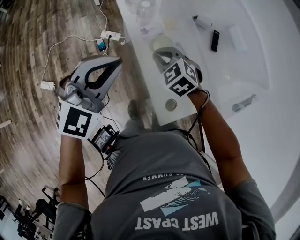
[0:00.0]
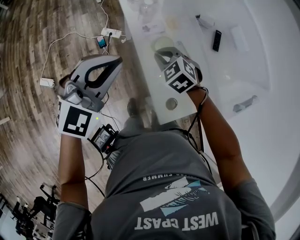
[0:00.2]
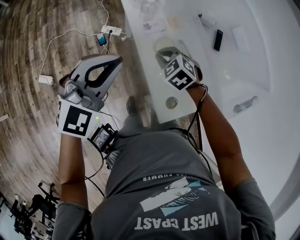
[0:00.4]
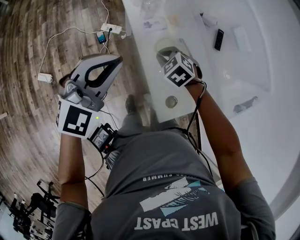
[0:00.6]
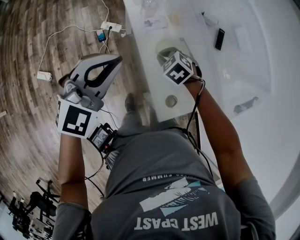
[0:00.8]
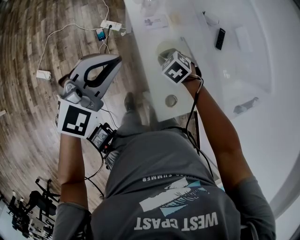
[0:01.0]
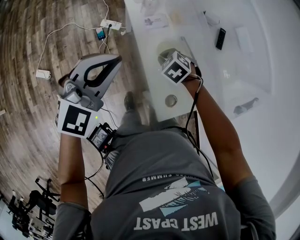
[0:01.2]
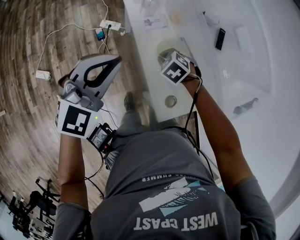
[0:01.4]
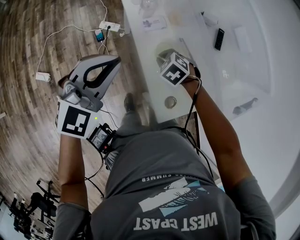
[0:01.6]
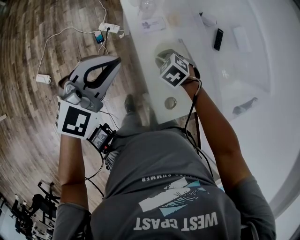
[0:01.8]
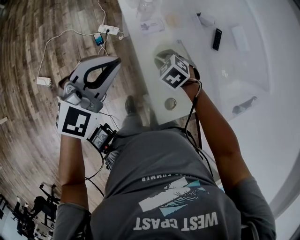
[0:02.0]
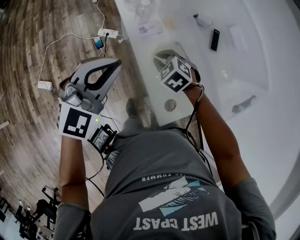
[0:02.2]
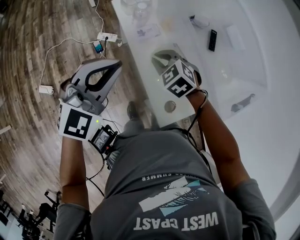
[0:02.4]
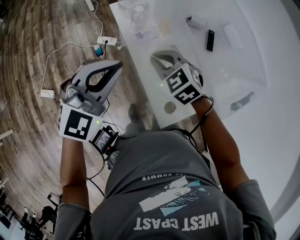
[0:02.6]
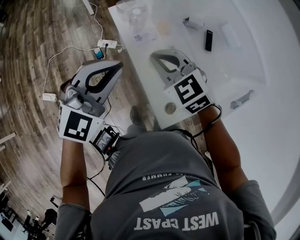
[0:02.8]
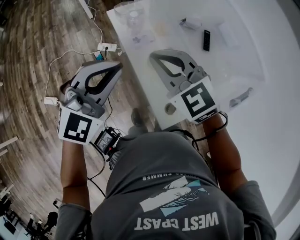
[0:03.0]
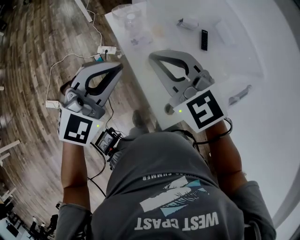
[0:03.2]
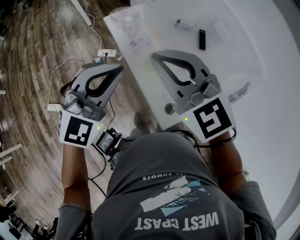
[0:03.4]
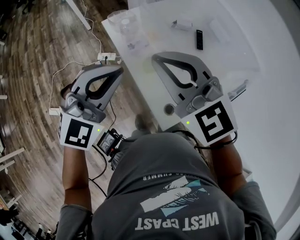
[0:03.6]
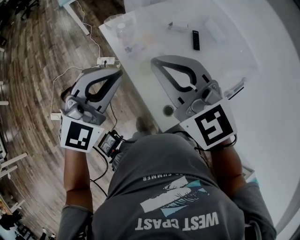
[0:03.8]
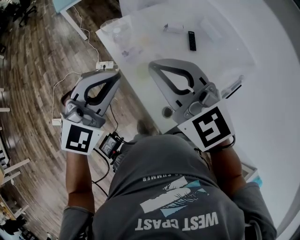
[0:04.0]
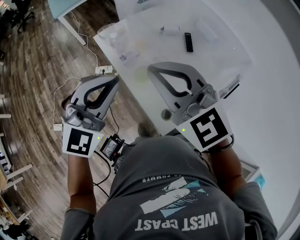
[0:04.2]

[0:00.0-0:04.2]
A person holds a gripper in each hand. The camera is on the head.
0.0 to 1.4 s: The right gripper shifts roughly 10 cm downward, and rotates roughly 20 degrees.
1.4 to 2.8 s: The right gripper moves upward, some 25 cm, and tilts its fingers about 40 degrees upward, while the left gripper goes approximately 5 cm upward.
2.8 to 4.2 s: The left gripper heads upward and to the right, covering about 10 cm, while the right gripper moves upward and backward, about 20 cm, and swivels about 20 degrees.

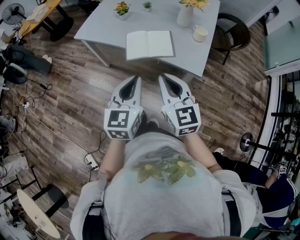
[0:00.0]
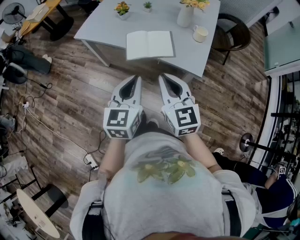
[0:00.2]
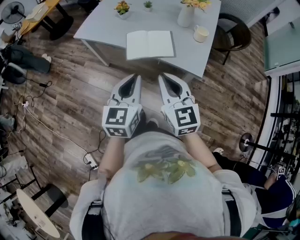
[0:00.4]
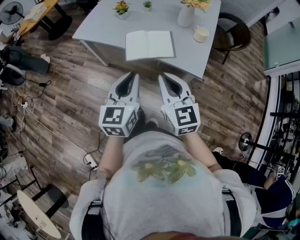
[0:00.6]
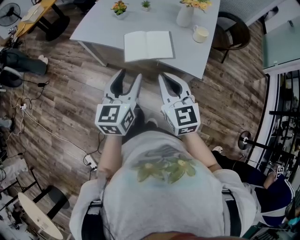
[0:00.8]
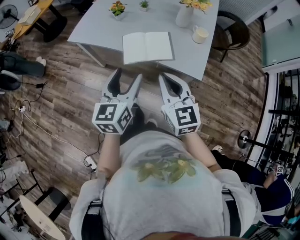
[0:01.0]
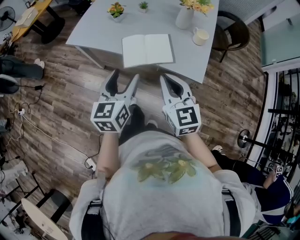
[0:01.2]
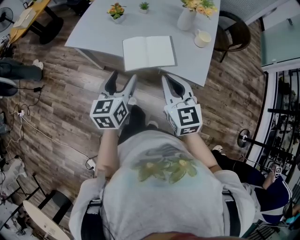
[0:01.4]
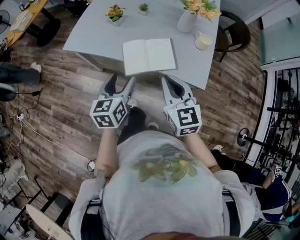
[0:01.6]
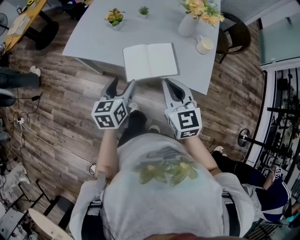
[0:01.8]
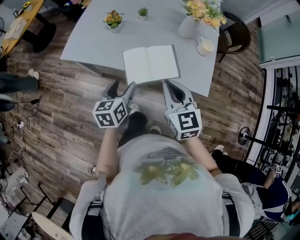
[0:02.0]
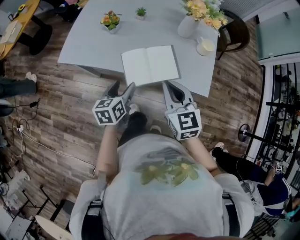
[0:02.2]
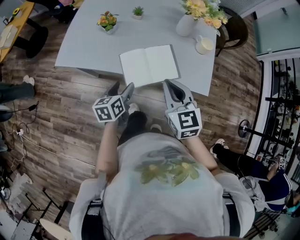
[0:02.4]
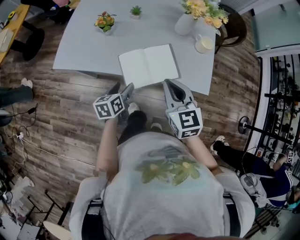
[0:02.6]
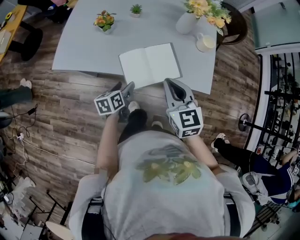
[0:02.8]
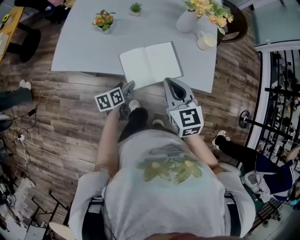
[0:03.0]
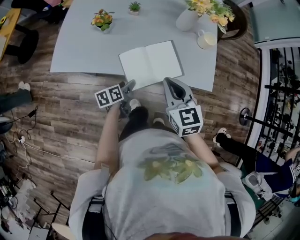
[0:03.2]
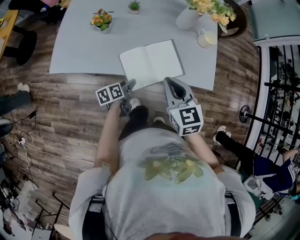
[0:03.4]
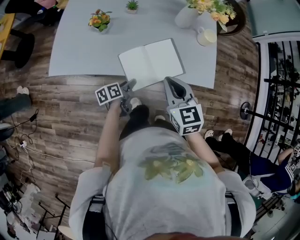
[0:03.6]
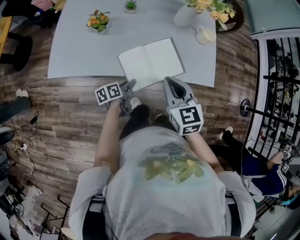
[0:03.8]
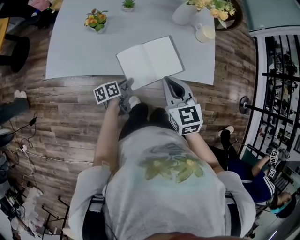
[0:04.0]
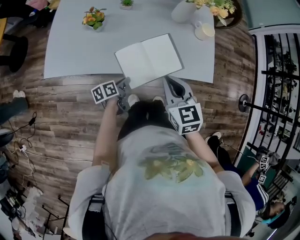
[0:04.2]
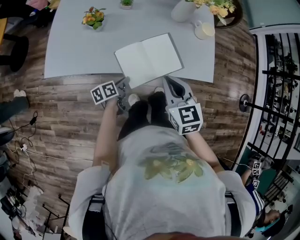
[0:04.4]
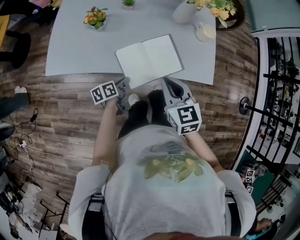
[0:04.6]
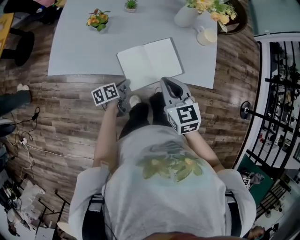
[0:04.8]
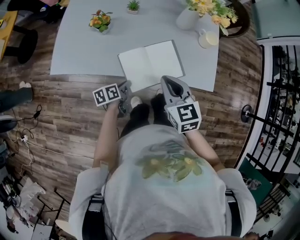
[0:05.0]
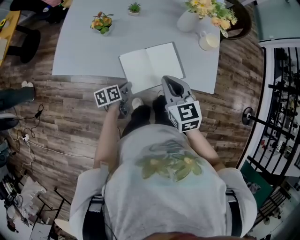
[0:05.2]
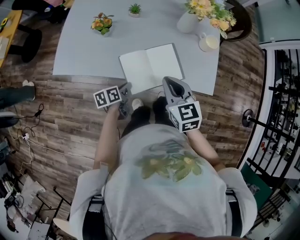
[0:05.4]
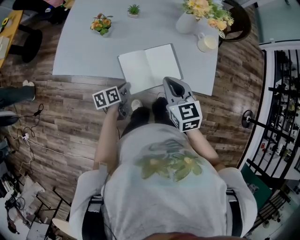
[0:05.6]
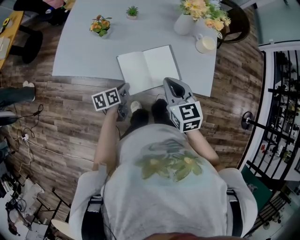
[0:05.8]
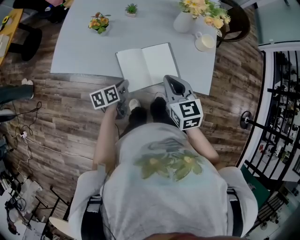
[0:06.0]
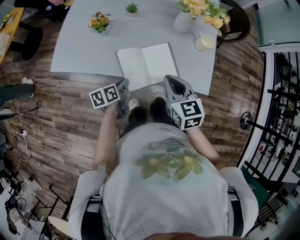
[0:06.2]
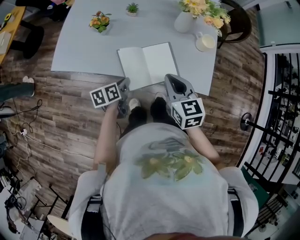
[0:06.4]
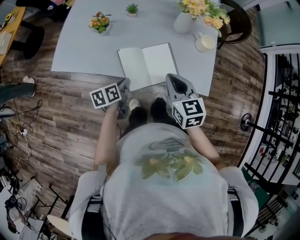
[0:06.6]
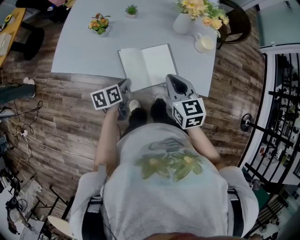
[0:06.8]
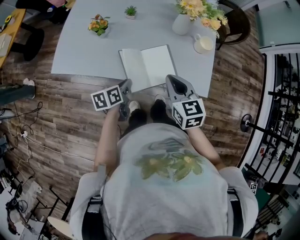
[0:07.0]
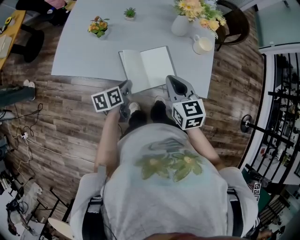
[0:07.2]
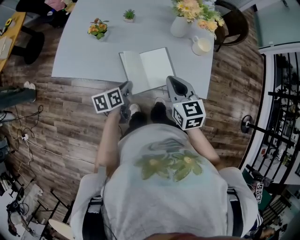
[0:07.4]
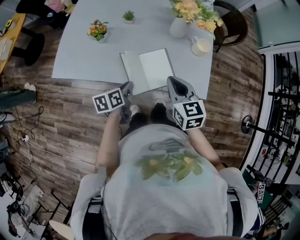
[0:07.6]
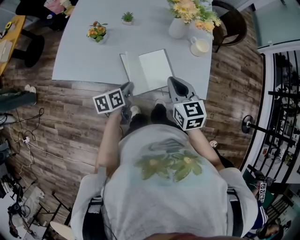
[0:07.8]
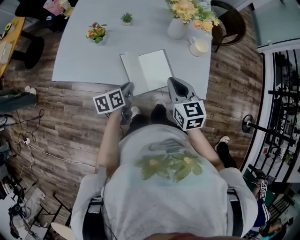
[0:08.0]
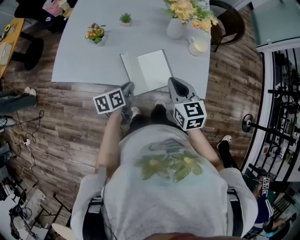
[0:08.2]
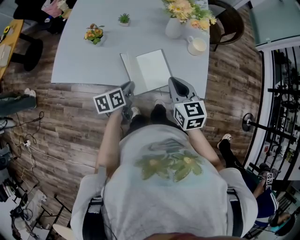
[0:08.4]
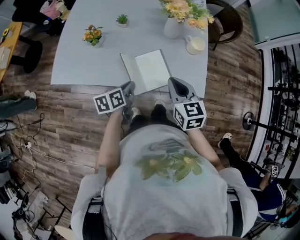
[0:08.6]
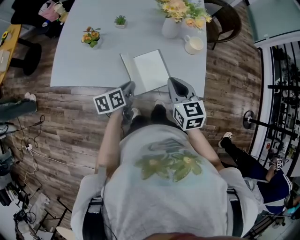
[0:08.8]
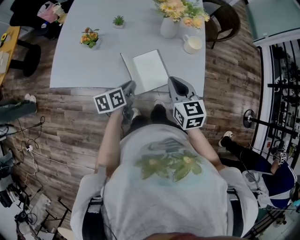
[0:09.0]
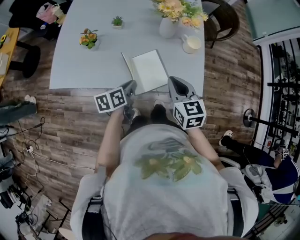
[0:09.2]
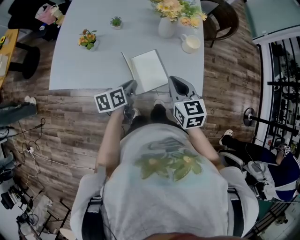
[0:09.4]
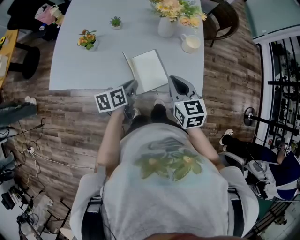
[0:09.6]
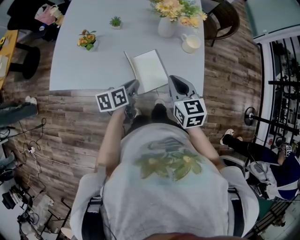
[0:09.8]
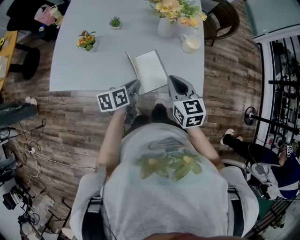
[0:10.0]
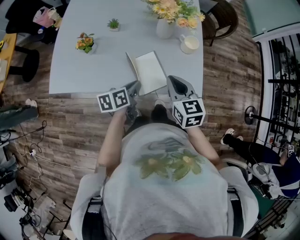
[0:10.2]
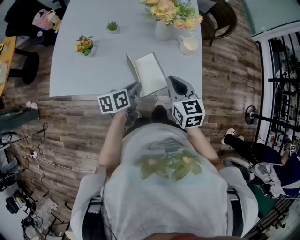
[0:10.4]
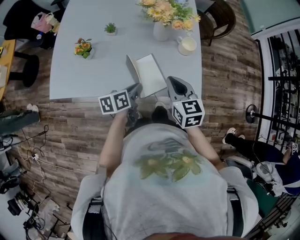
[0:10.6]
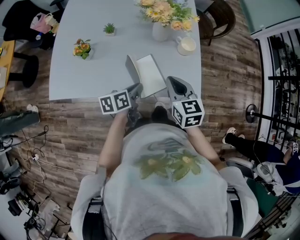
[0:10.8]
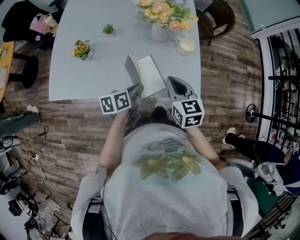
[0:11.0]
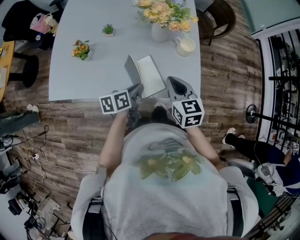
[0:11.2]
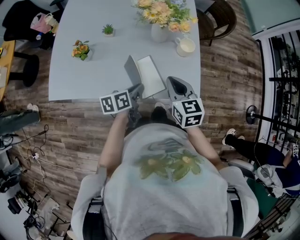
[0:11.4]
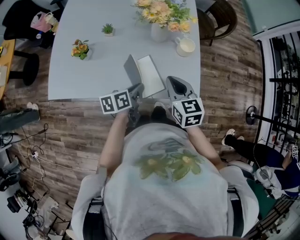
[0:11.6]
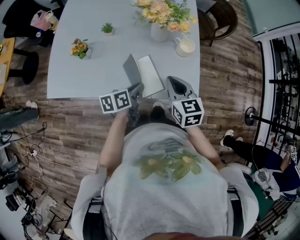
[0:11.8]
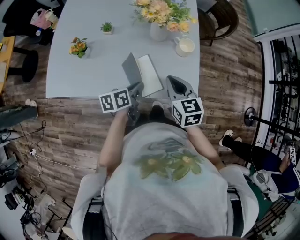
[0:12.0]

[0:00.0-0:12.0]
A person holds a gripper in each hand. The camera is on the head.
0.0 to 1.6 s: The left gripper heads forward, downward and to the left, covering some 20 cm, and opens. Meanwhile the right gripper shifts some 10 cm forward.
1.6 to 3.0 s: The left gripper is displaced downward and forward by some 20 cm, and rotates some 40 degrees. Meanwhile the right gripper moves forward, about 10 cm.
3.0 to 4.4 s: The left gripper ends up approximately 5 cm from where it was, and closes.
4.4 to 6.0 s: The right gripper shifts by approximately 5 cm. Meanwhile the left gripper heads upward, covering some 5 cm.
6.0 to 7.6 s: The left gripper changes place by about 5 cm.
7.6 to 9.0 s: The grippers stay close to where they were, moving slightly.
9.0 to 10.4 s: There are only small adjustments of the grippers.
10.4 to 12.0 s: The grippers stay close to where they were, moving slightly.

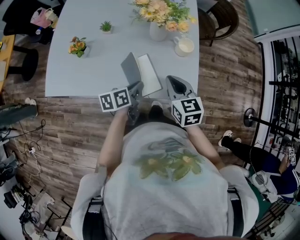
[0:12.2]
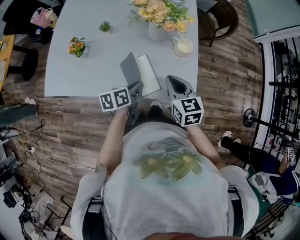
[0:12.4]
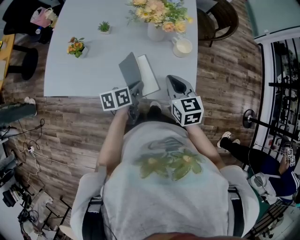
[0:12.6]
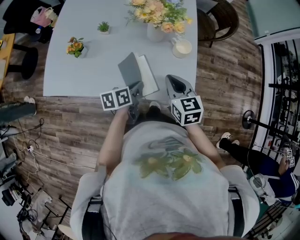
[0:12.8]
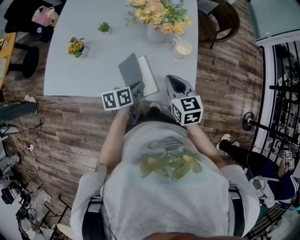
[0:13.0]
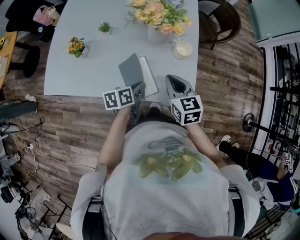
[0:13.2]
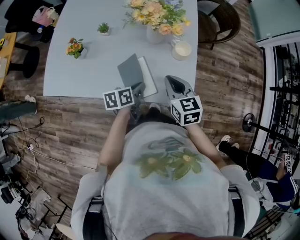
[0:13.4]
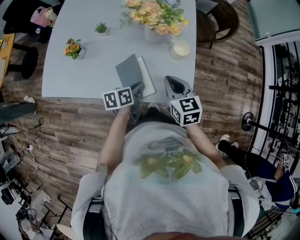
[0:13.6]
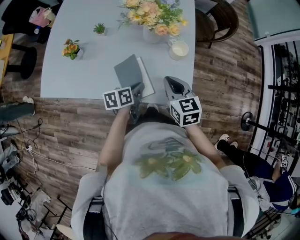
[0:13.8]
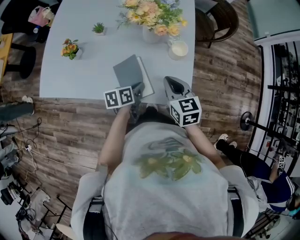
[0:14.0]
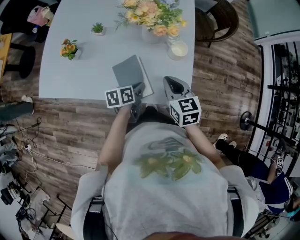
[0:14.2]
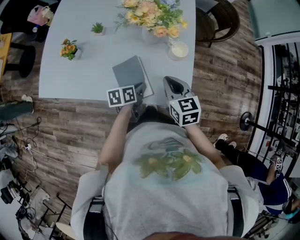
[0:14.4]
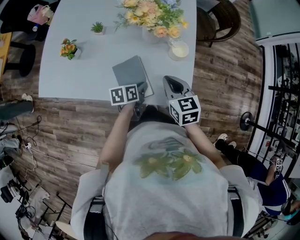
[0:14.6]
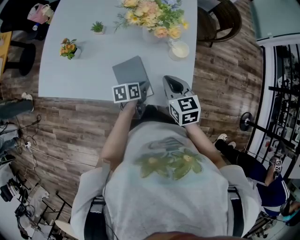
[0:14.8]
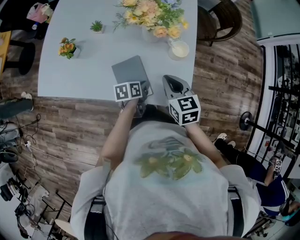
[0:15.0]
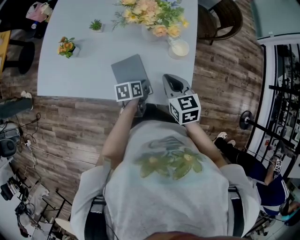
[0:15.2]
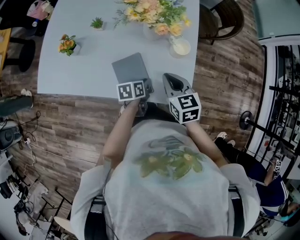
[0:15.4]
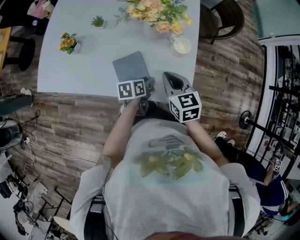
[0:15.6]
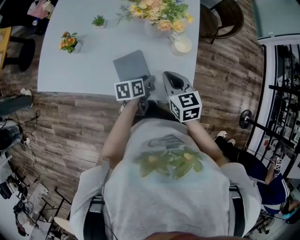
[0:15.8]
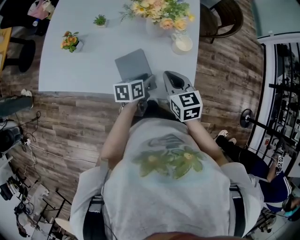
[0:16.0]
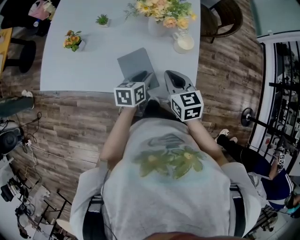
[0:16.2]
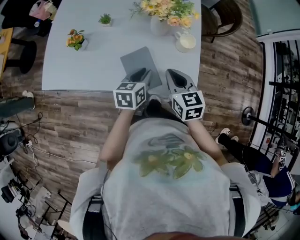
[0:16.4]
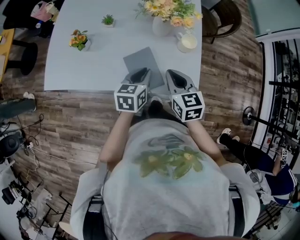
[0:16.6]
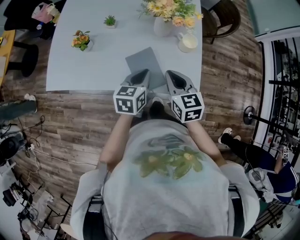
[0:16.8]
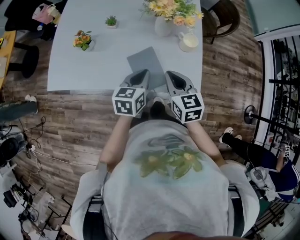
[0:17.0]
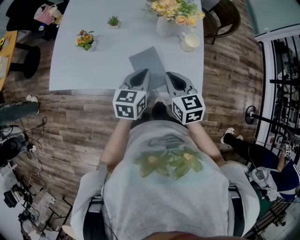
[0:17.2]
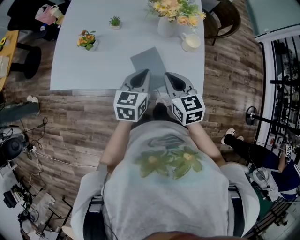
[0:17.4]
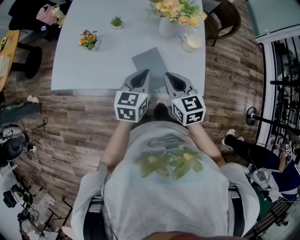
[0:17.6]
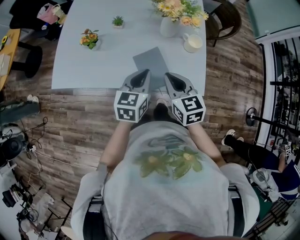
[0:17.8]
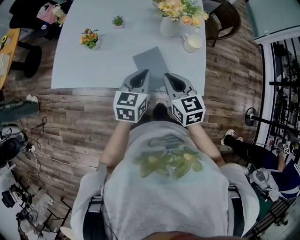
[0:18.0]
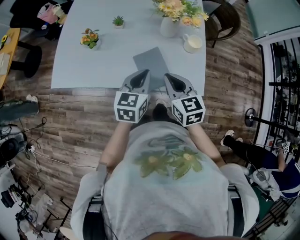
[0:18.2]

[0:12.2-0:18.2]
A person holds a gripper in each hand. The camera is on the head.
12.2 to 13.8 s: The left gripper ends up approximately 5 cm from where it was.
13.8 to 15.2 s: The left gripper goes some 5 cm downward.
15.2 to 16.6 s: The left gripper travels upward by roughly 15 cm, and changes its angle by about 30 degrees. The right gripper moves some 5 cm.
16.6 to 18.2 s: The right gripper heads to the left, covering about 5 cm. Meanwhile the left gripper is displaced upward by some 5 cm.

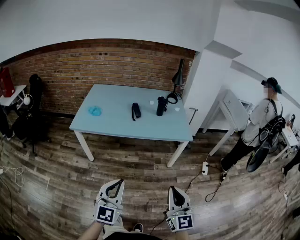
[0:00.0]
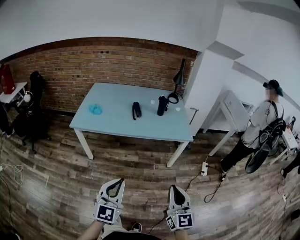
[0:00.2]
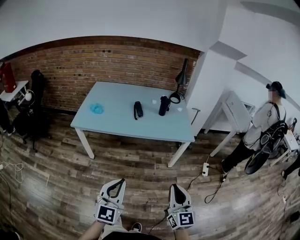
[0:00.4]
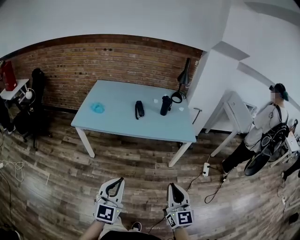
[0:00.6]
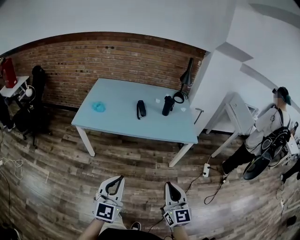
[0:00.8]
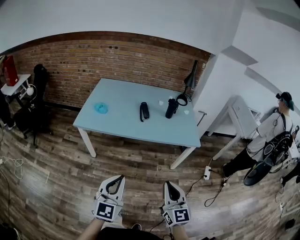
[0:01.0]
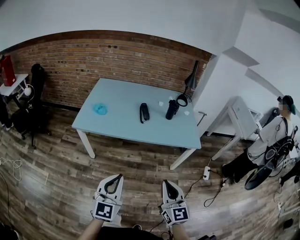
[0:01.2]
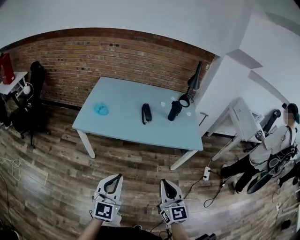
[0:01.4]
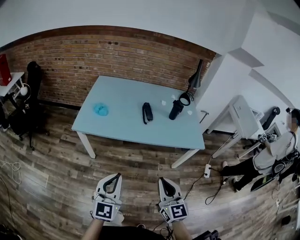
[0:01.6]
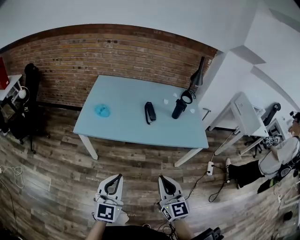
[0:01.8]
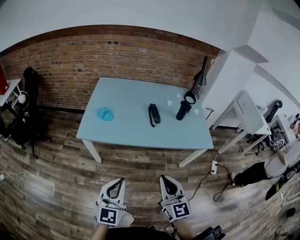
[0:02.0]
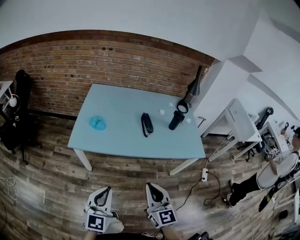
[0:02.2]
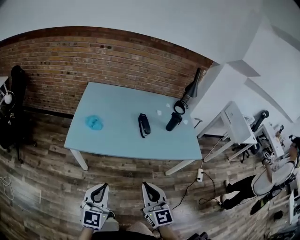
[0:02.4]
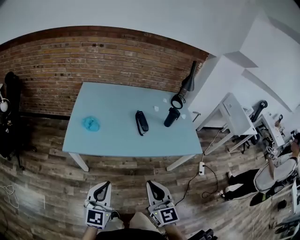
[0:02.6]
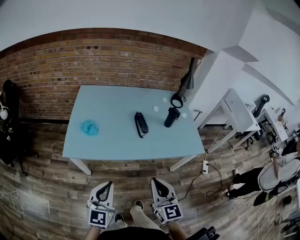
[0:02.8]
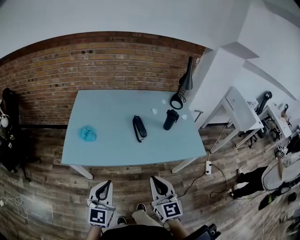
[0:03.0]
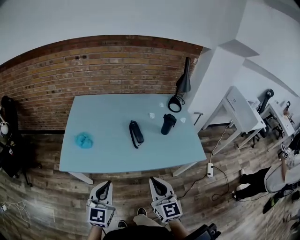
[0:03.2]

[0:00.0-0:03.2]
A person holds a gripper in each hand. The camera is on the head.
0.0 to 1.6 s: The two grippers go approximately 20 cm forward and to the left.
1.6 to 3.2 s: The two grippers go about 25 cm forward.
